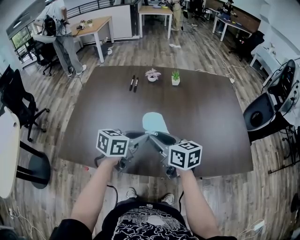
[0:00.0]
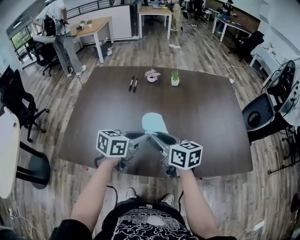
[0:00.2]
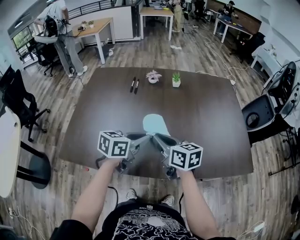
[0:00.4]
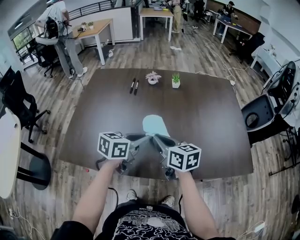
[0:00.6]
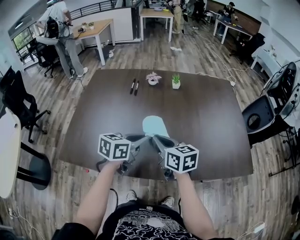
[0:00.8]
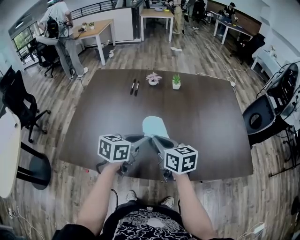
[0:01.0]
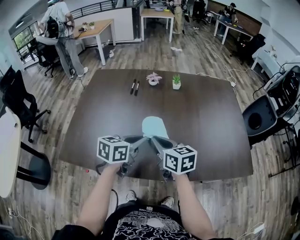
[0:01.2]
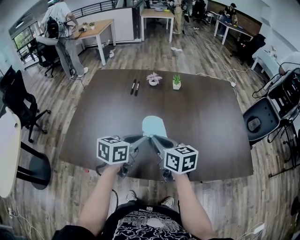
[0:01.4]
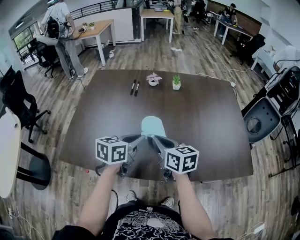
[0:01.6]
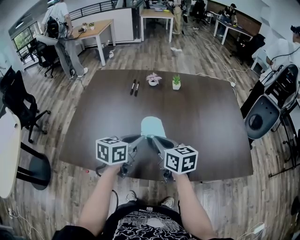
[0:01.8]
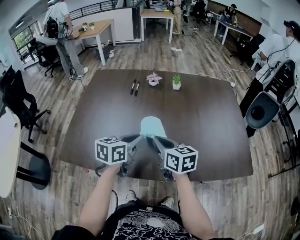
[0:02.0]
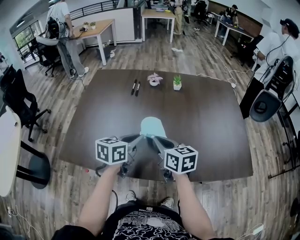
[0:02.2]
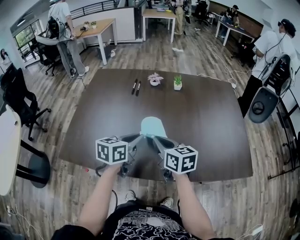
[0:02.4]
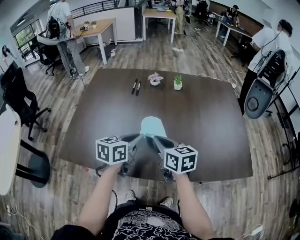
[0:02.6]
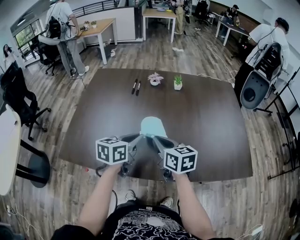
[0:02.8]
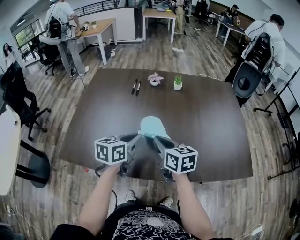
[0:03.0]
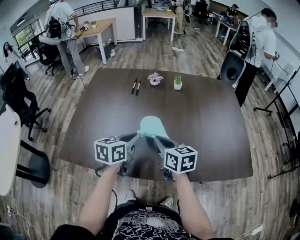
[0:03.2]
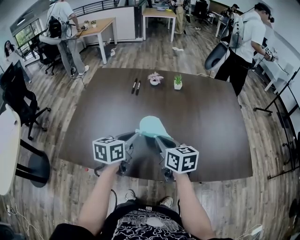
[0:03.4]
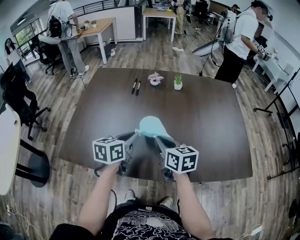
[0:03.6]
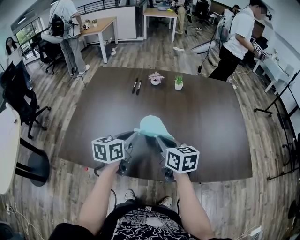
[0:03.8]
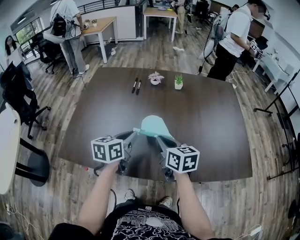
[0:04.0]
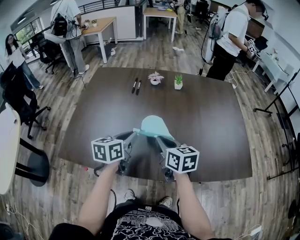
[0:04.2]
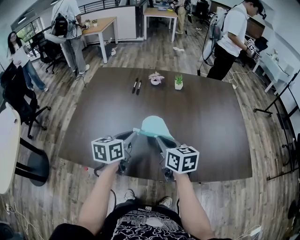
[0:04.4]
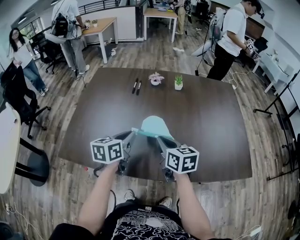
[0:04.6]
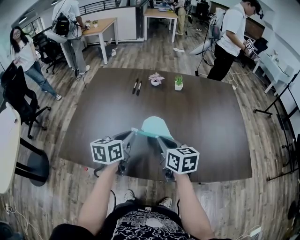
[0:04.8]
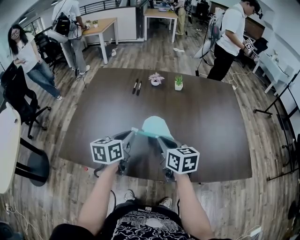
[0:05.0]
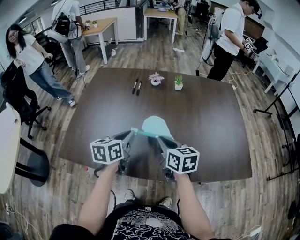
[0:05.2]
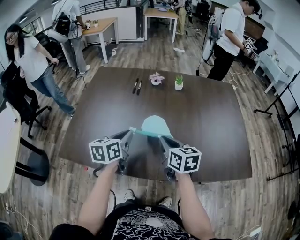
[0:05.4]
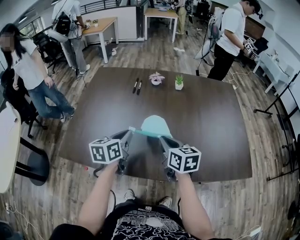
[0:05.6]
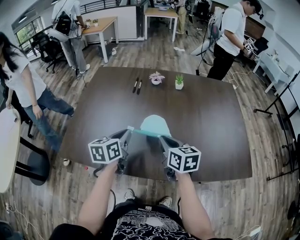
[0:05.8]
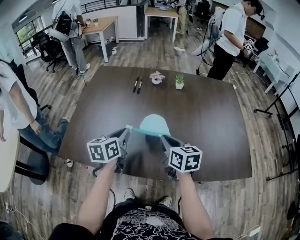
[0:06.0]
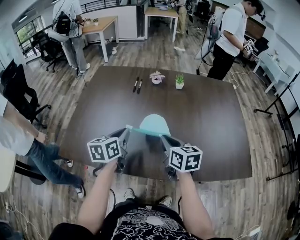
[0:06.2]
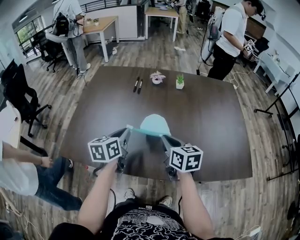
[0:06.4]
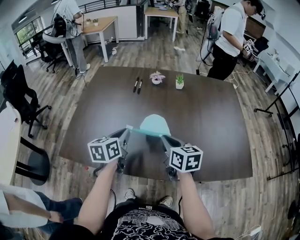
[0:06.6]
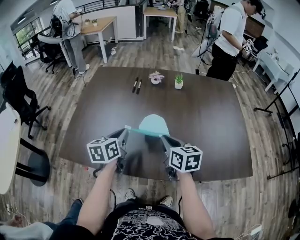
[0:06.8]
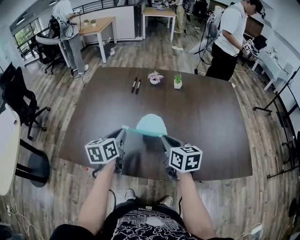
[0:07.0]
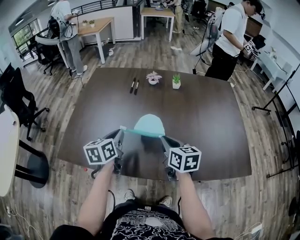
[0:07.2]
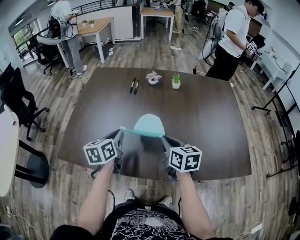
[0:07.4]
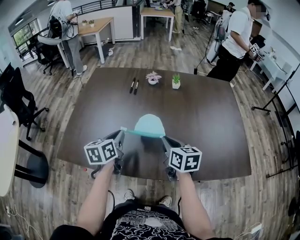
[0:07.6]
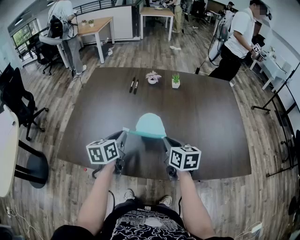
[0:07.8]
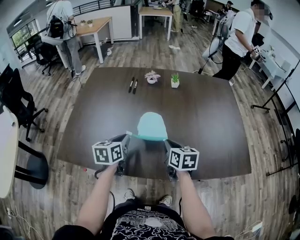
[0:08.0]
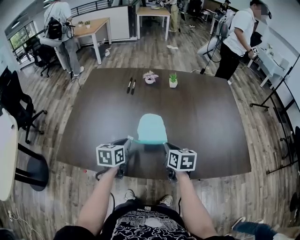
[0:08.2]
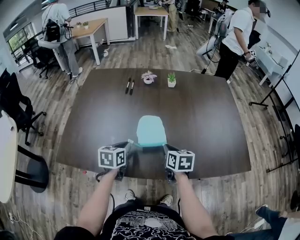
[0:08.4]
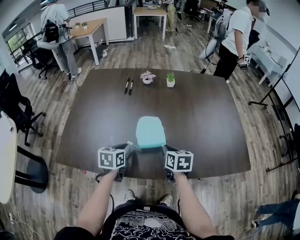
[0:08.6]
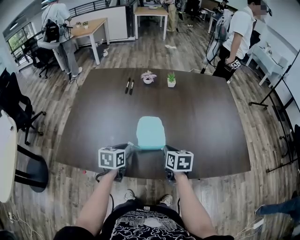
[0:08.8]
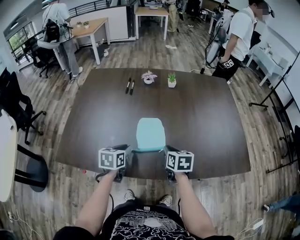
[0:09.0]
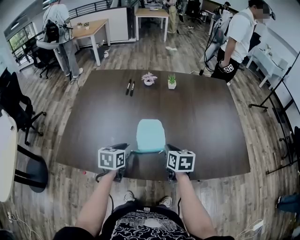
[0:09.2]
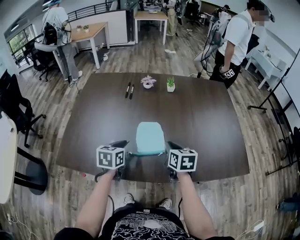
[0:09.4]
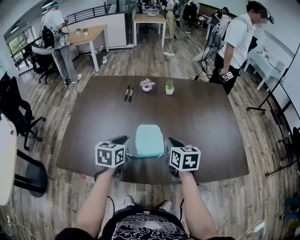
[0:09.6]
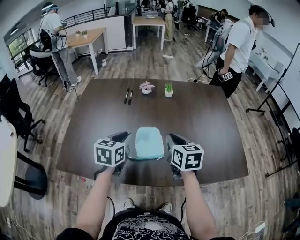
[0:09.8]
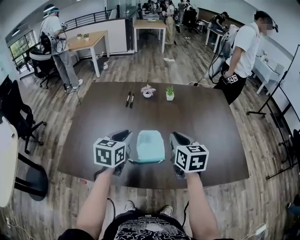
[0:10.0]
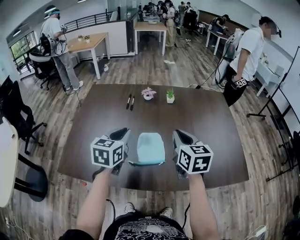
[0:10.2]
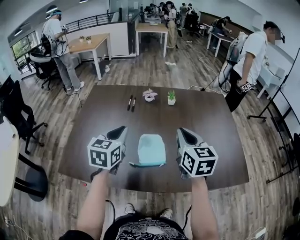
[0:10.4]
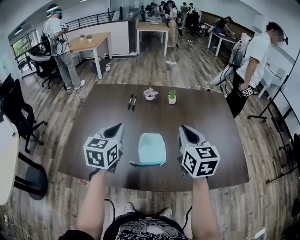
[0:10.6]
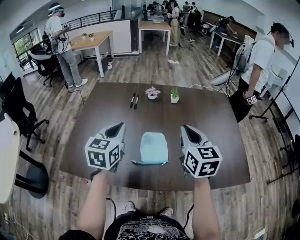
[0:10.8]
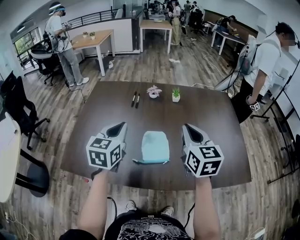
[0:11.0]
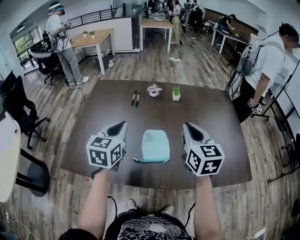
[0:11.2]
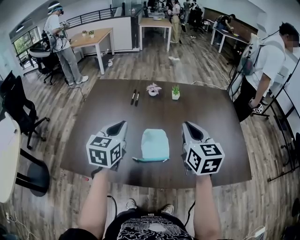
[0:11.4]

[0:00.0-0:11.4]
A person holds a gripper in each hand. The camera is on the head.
0:00.0 to 0:02.8: The grippers make only small movements.
0:02.8 to 0:05.6: The grippers stay close to where they were, moving slightly.
0:05.6 to 0:07.2: There are only small adjustments of the grippers.
0:07.2 to 0:08.6: The grippers both shift downward by some 10 cm. The left gripper rotates about 20 degrees.
0:08.6 to 0:10.0: Both grippers move upward, some 15 cm. The right gripper turns by some 20 degrees.
0:10.0 to 0:11.4: Both grippers move upward, some 5 cm.

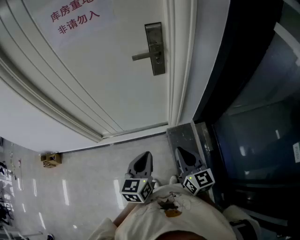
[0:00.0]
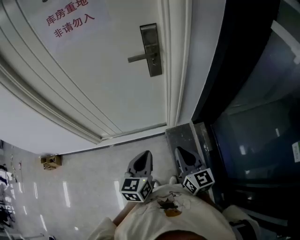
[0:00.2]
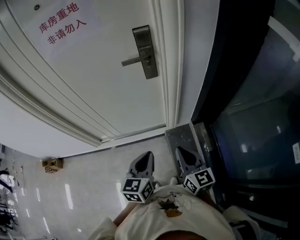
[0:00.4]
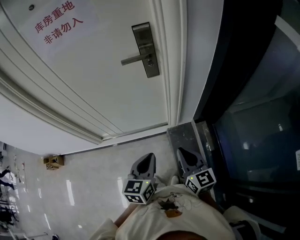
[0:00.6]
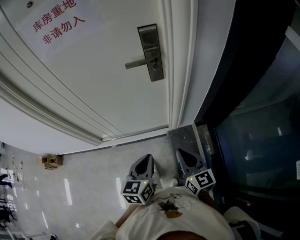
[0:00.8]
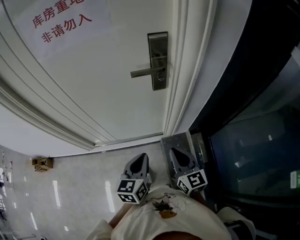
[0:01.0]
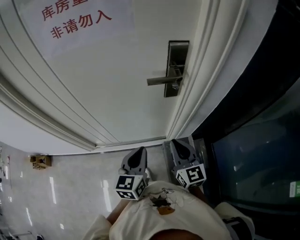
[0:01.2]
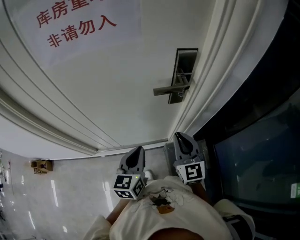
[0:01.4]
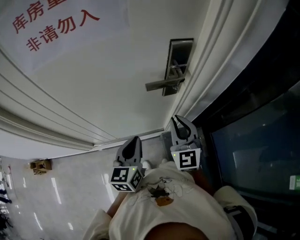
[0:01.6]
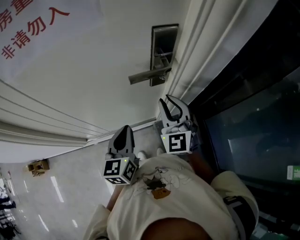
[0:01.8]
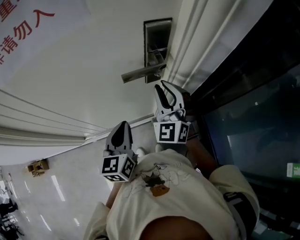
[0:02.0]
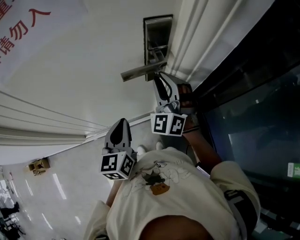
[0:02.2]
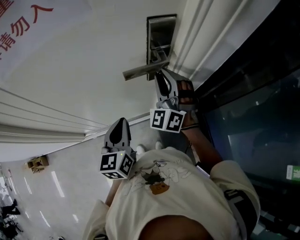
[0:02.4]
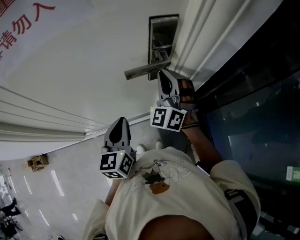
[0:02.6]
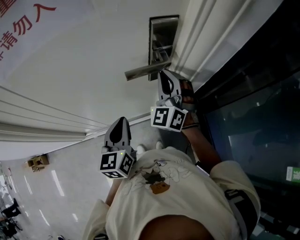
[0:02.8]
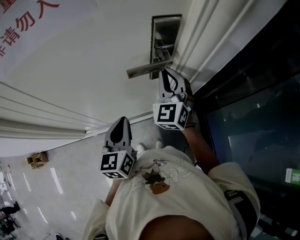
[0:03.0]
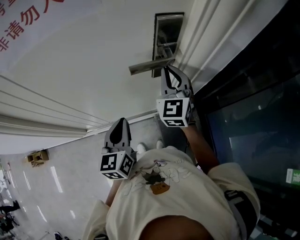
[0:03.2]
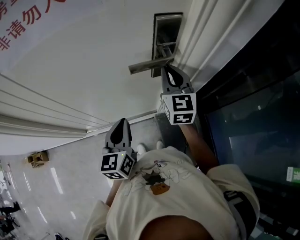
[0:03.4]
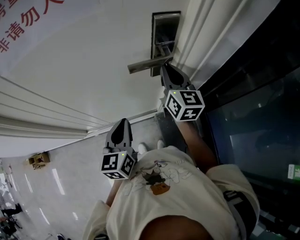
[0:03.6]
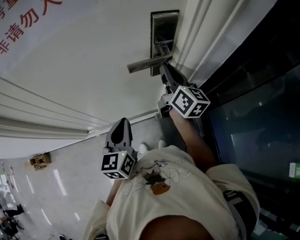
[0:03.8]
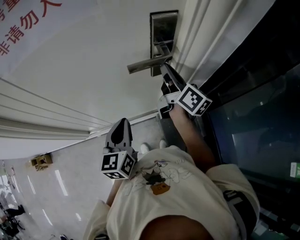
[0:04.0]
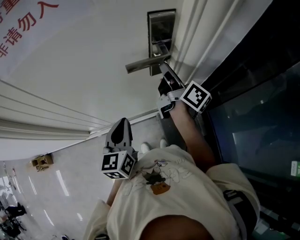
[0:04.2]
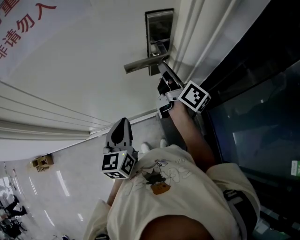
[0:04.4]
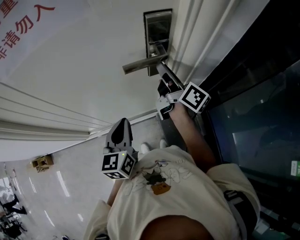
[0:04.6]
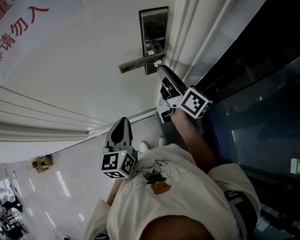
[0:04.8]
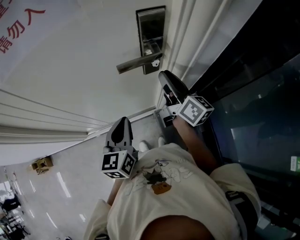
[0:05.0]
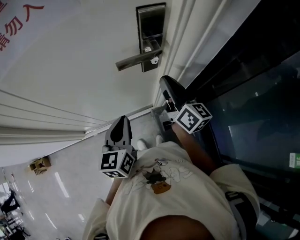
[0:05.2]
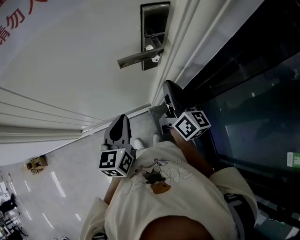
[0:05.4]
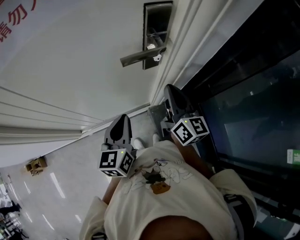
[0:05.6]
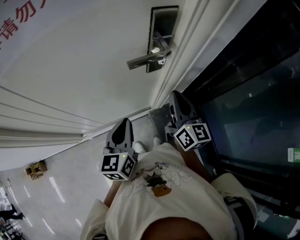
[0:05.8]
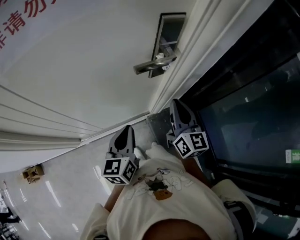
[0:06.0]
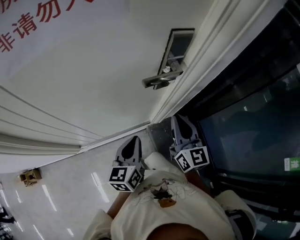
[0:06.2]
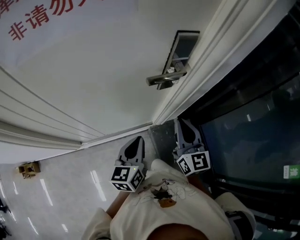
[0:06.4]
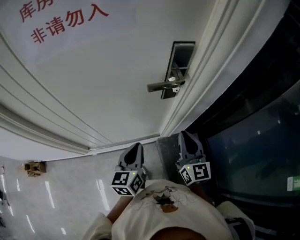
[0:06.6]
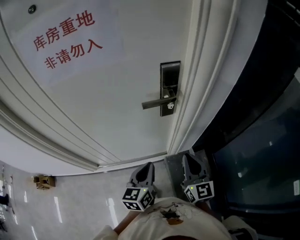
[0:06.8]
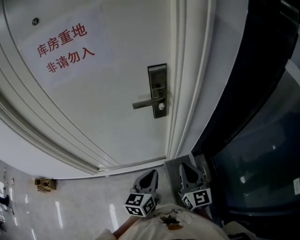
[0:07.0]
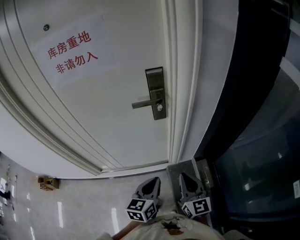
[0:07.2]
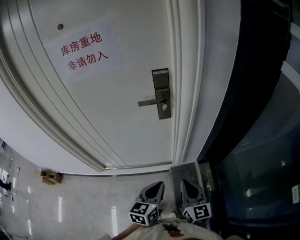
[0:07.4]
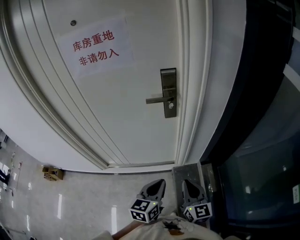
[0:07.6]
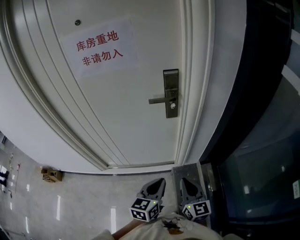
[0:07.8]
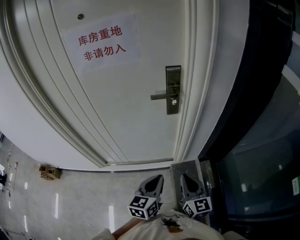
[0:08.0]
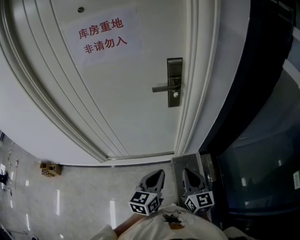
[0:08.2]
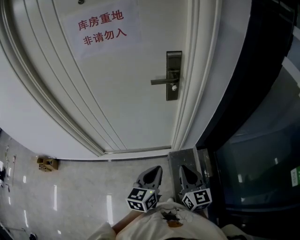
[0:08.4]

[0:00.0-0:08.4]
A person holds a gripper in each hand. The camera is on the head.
0:00.0 to 0:01.4: The two grippers go approximately 25 cm forward. The right gripper swivels some 20 degrees.
0:01.4 to 0:02.8: The left gripper moves forward, about 10 cm; the right gripper travels forward by about 15 cm, rotates around the line of its fingers by some 40 degrees, counterclockwise from behind, and opens, then closes again.
0:02.8 to 0:04.2: The right gripper rolls clockwise, seen from behind, by some 110 degrees.
0:04.2 to 0:05.6: The right gripper moves backward, approximately 10 cm, and rotates roughly 40 degrees.
0:05.6 to 0:07.0: The left gripper travels to the right and backward by roughly 15 cm; the right gripper heads backward and to the right, covering about 15 cm.
0:07.0 to 0:08.4: Both grippers move backward, some 15 cm.

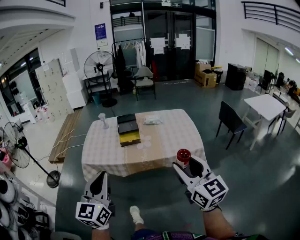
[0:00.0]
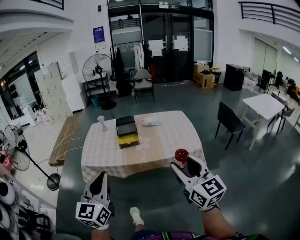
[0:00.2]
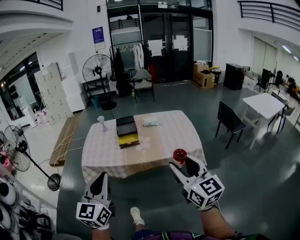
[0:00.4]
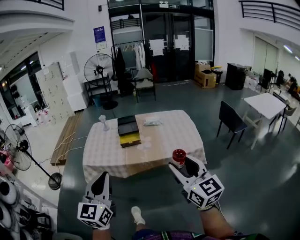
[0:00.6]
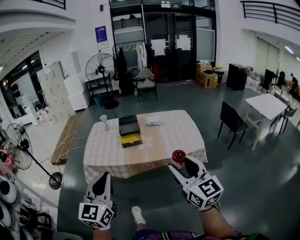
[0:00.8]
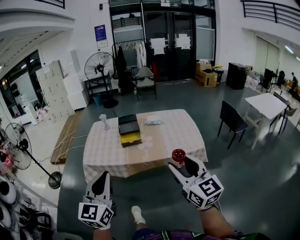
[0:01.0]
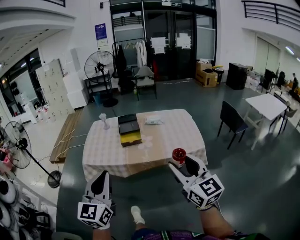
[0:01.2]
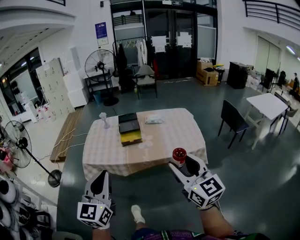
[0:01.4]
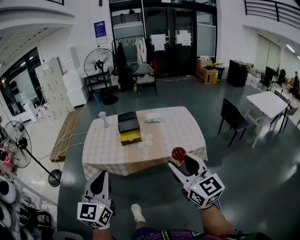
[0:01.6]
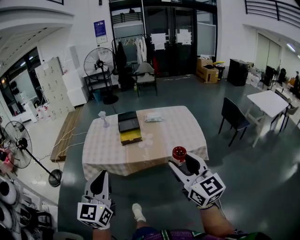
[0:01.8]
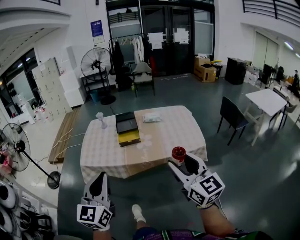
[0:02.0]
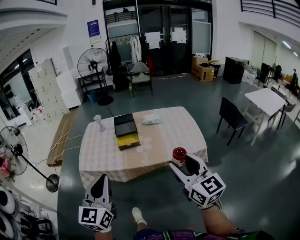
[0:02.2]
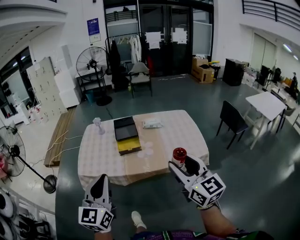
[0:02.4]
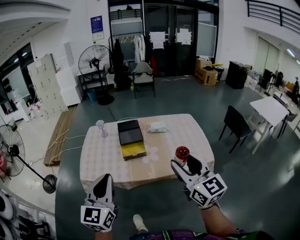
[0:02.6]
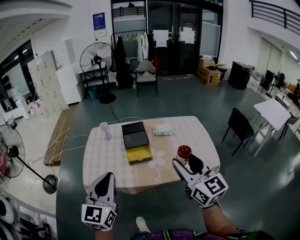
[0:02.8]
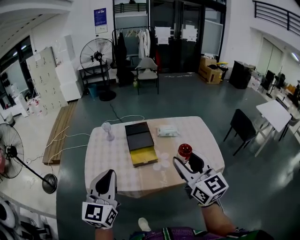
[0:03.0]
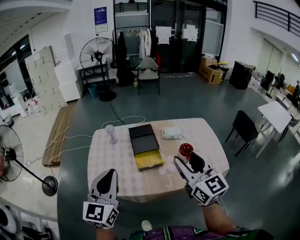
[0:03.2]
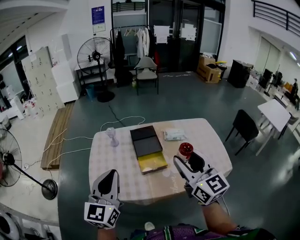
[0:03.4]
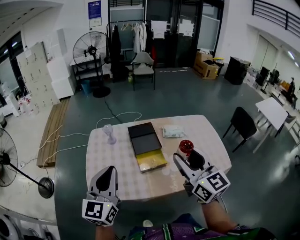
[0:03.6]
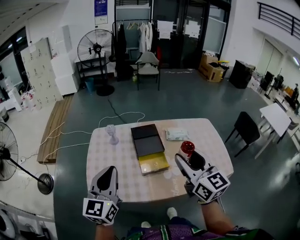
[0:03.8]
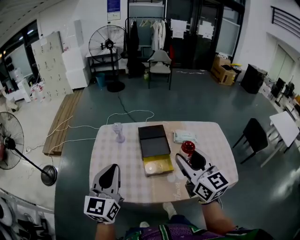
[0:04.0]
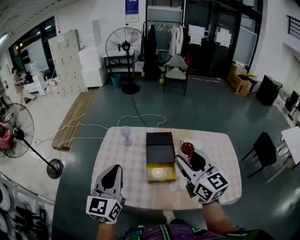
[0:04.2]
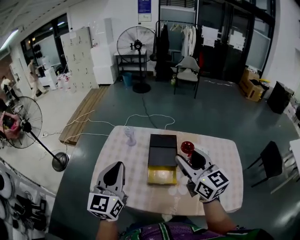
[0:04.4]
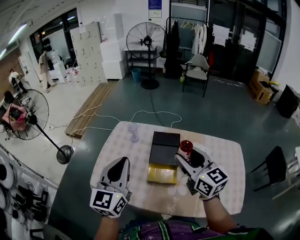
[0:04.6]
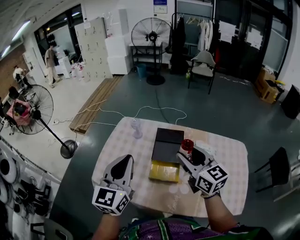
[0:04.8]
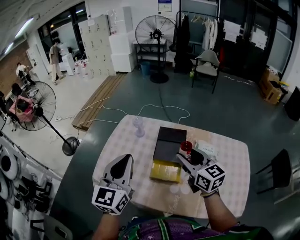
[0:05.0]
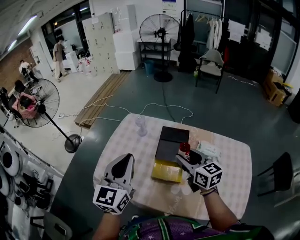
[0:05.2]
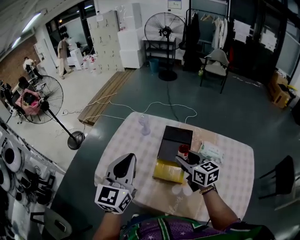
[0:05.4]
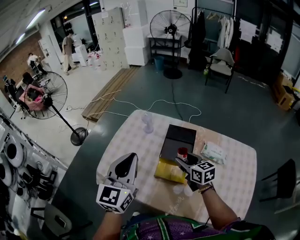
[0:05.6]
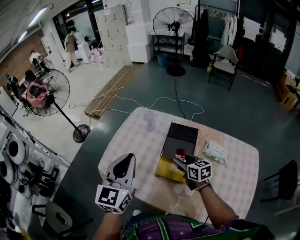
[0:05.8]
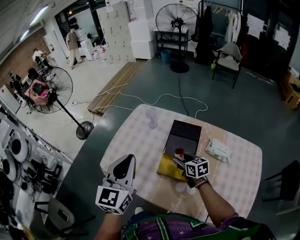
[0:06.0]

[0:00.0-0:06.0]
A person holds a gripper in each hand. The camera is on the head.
0:00.0 to 0:01.6: The grippers move only a little.
0:01.6 to 0:03.0: The two grippers go some 35 cm forward.
0:03.0 to 0:04.4: The two grippers go about 25 cm forward. The right gripper swivels about 20 degrees.
0:04.4 to 0:06.0: The left gripper shifts approximately 5 cm downward; the right gripper shifts roughly 30 cm downward, and tilts its fingers about 30 degrees downward.
